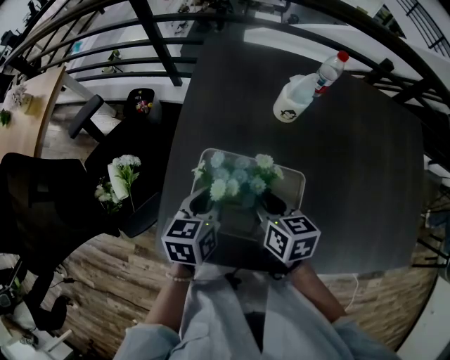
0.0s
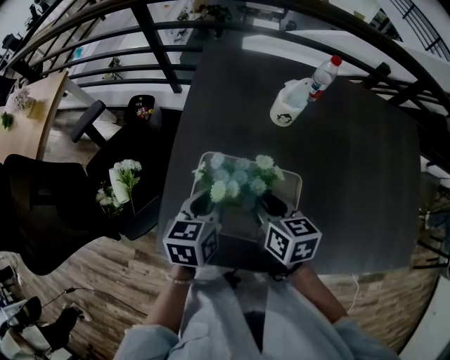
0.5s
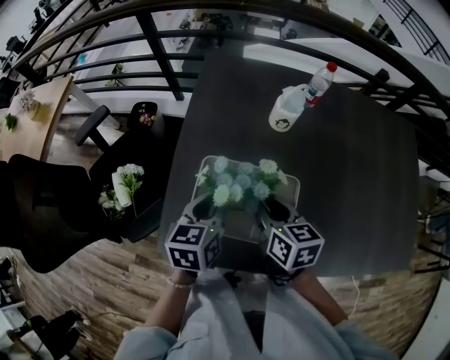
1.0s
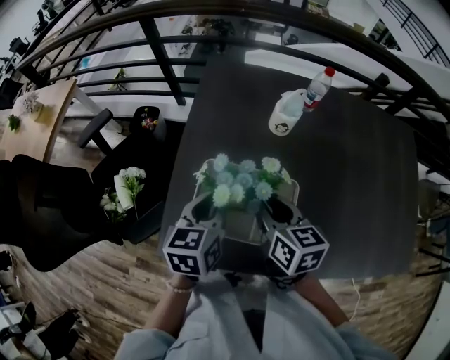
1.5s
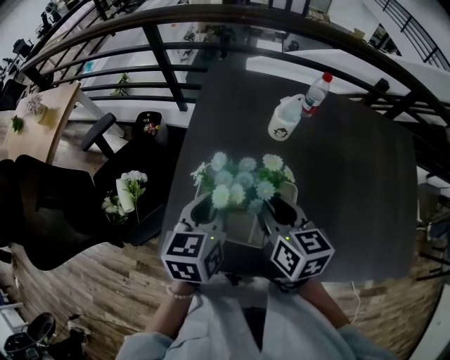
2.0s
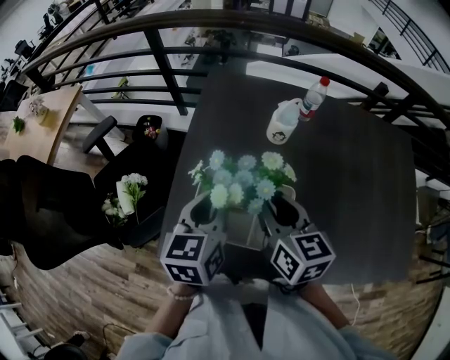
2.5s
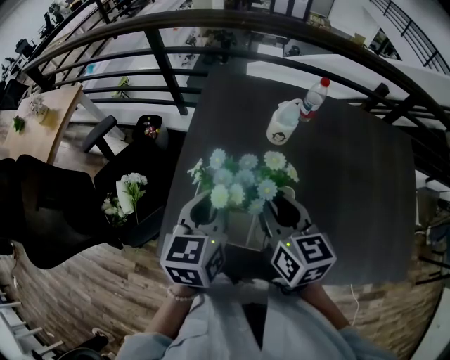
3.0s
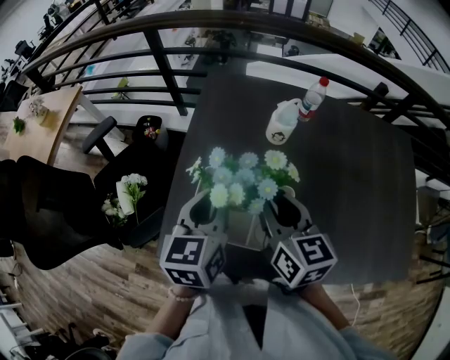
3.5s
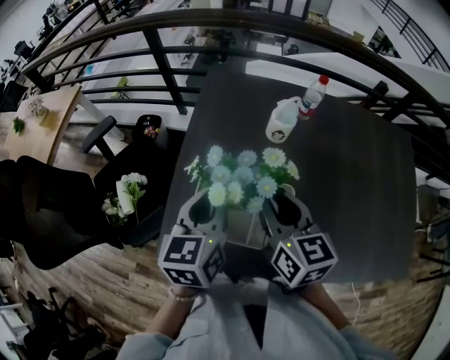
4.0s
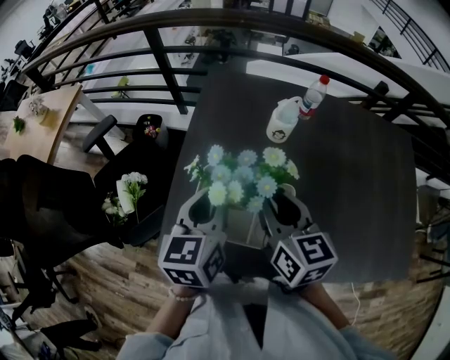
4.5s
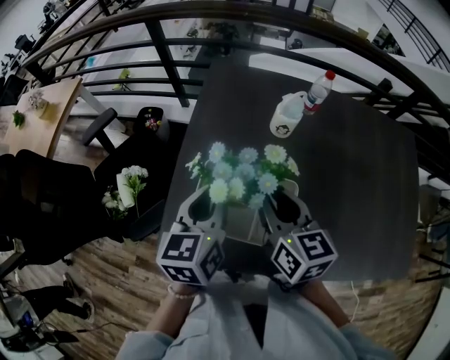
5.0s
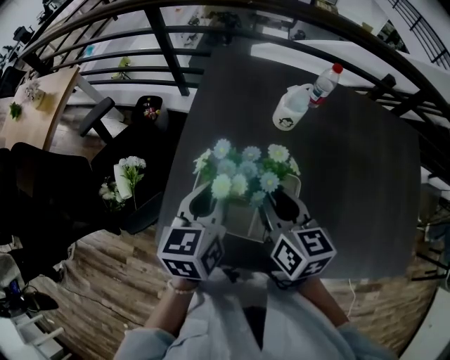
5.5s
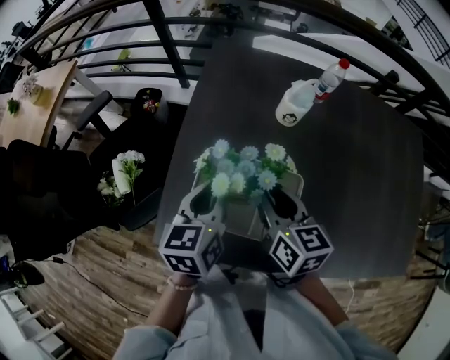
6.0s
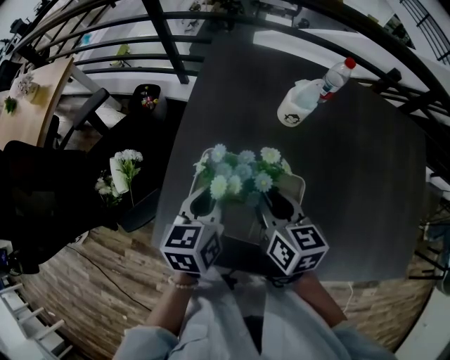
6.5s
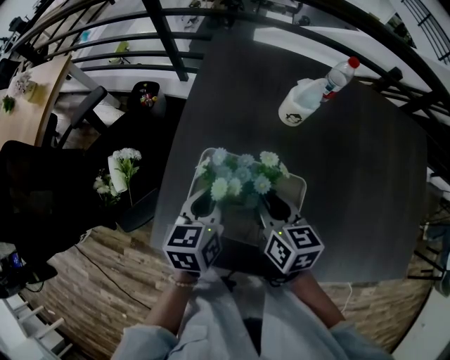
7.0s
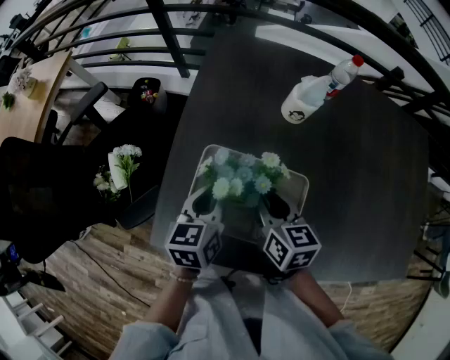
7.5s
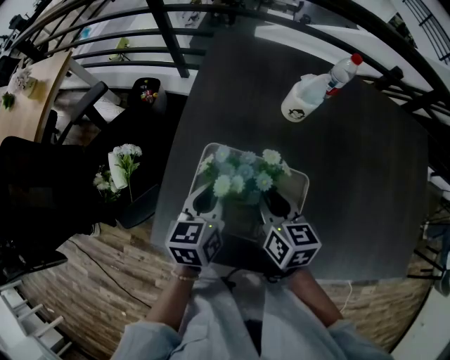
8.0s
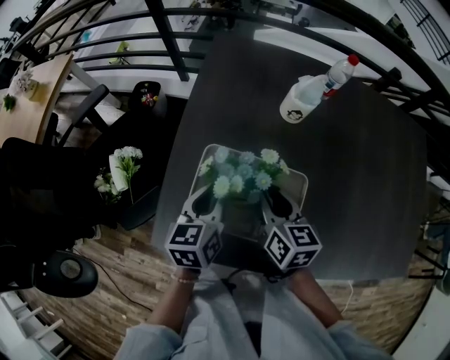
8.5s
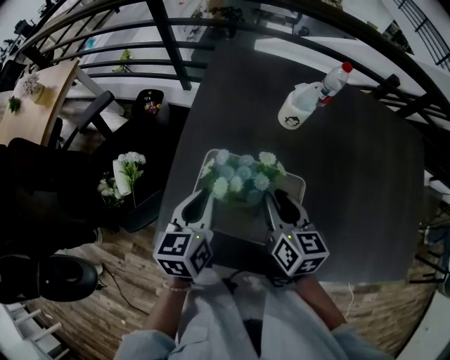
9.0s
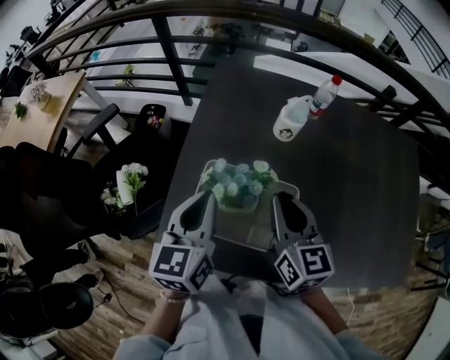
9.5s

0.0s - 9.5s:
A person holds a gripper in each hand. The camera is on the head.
0.0s - 2.0s: Both grippers move upward, some 10 cm.
2.0s - 5.5s: The grippers move only a little.
5.5s - 7.5s: Both grippers move downward, roughly 10 cm.
7.5s - 9.5s: Both grippers travel together upward, about 10 cm. The right gripper turns by some 20 degrees.

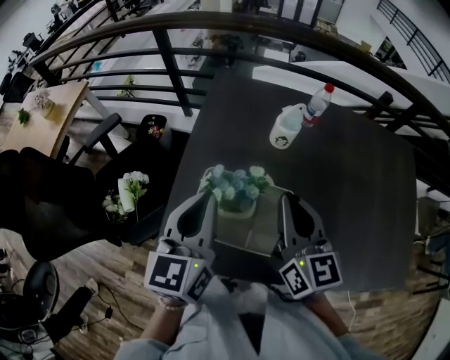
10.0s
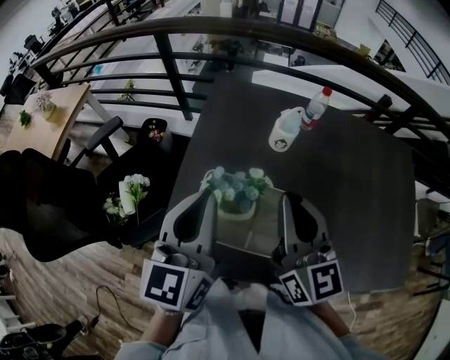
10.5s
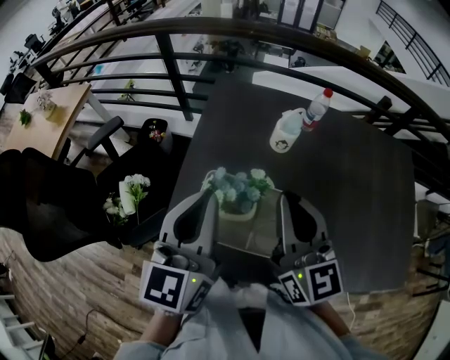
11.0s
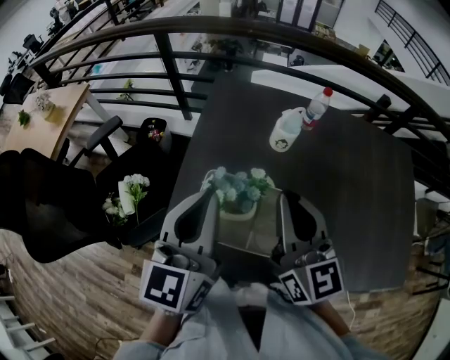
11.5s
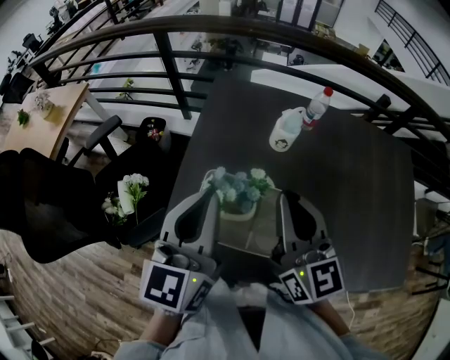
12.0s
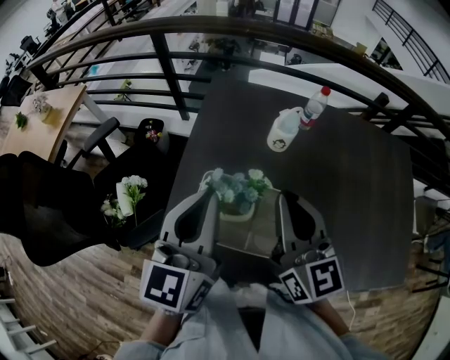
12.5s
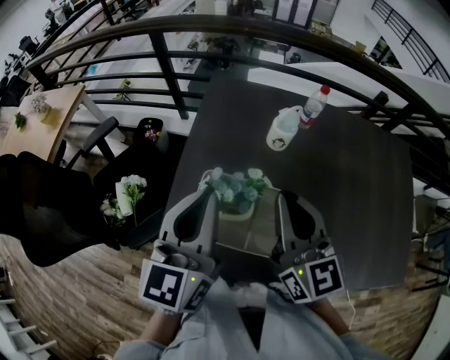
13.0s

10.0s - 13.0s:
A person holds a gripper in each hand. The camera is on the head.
10.0s - 11.5s: Both grippers move upward, roughly 5 cm.
11.5s - 13.0s: Neither gripper changes place.

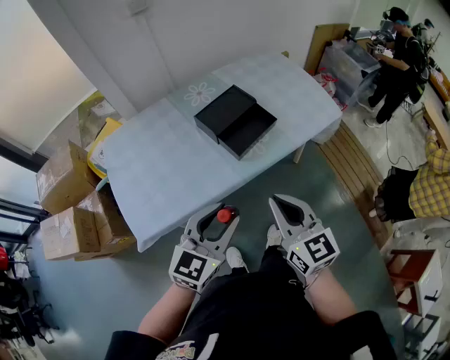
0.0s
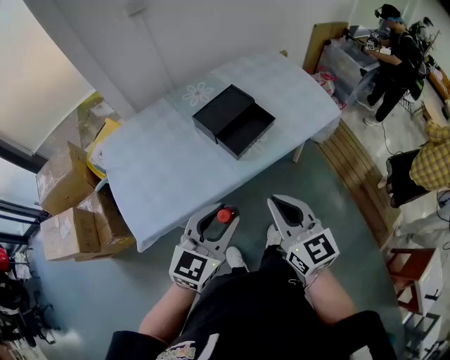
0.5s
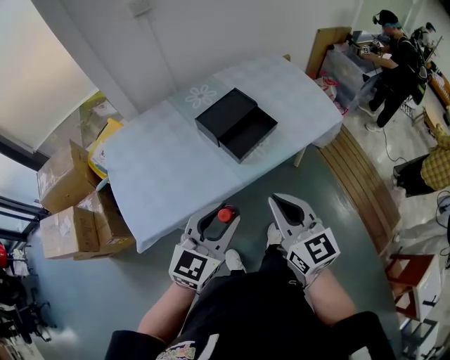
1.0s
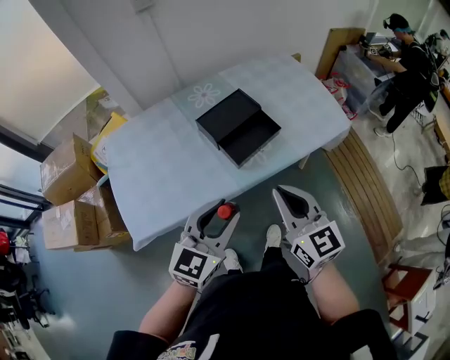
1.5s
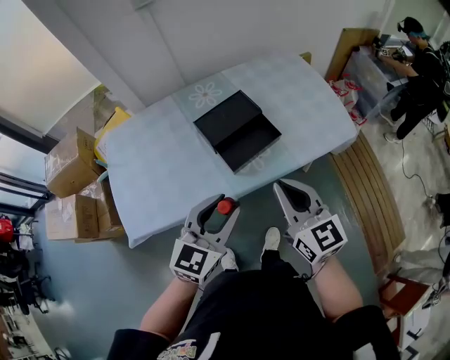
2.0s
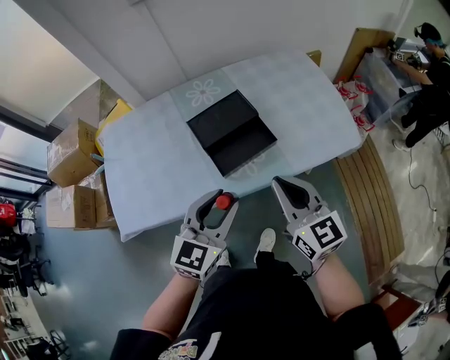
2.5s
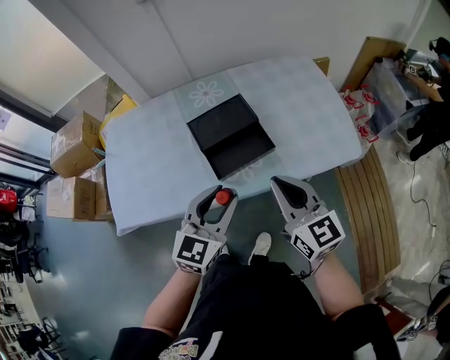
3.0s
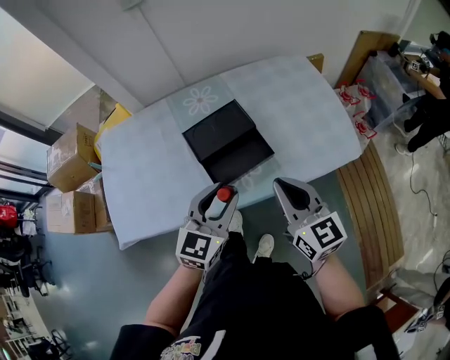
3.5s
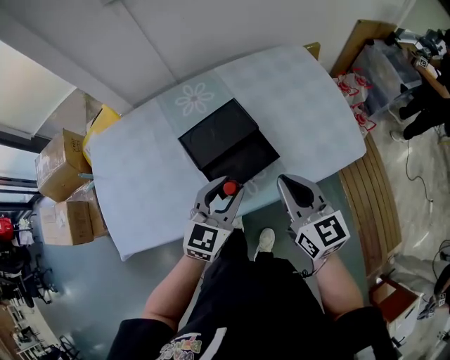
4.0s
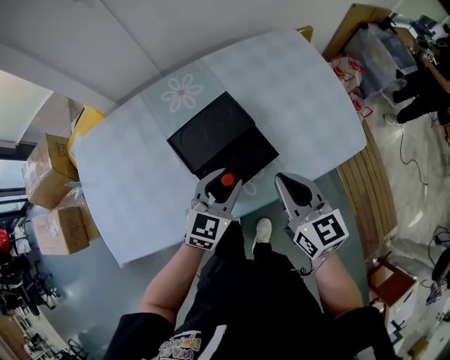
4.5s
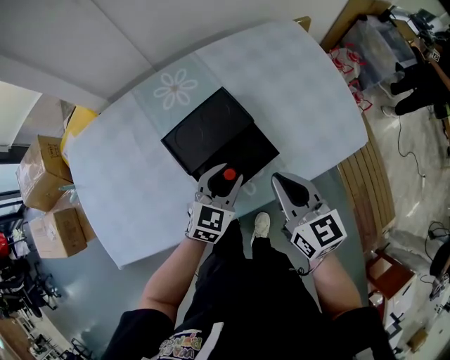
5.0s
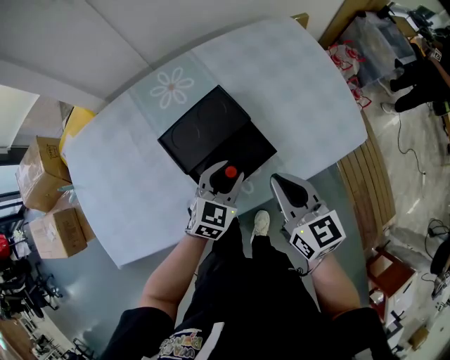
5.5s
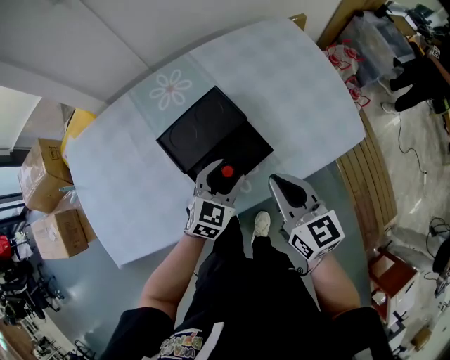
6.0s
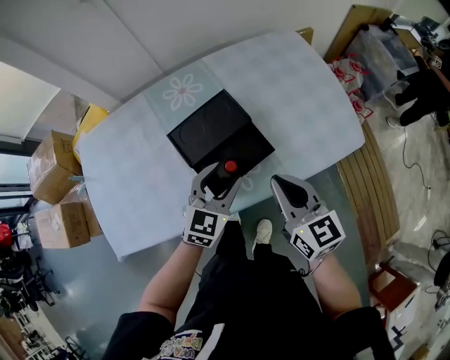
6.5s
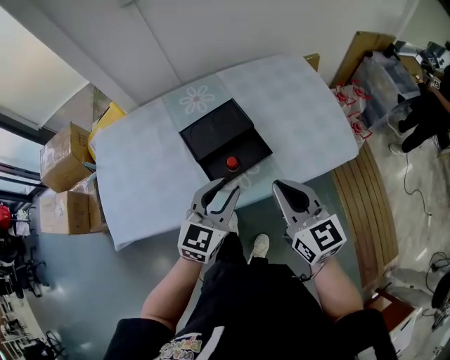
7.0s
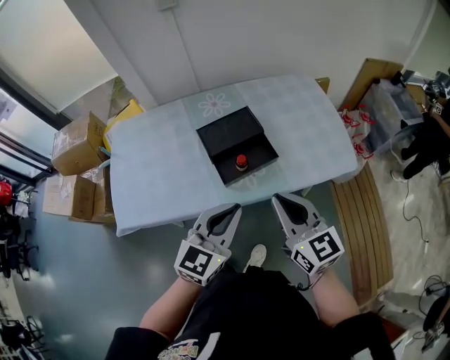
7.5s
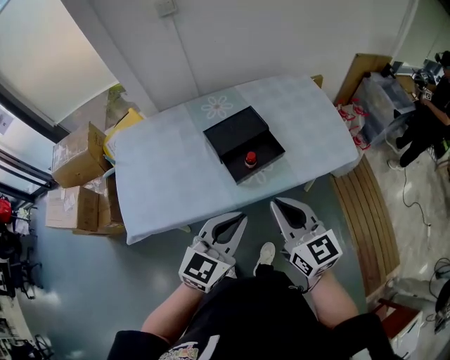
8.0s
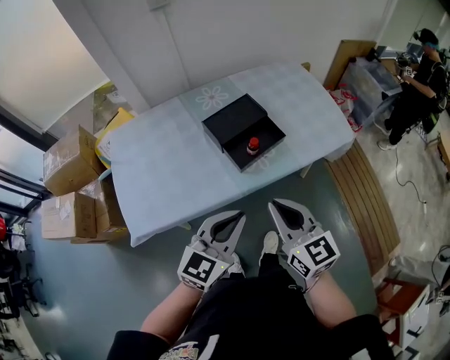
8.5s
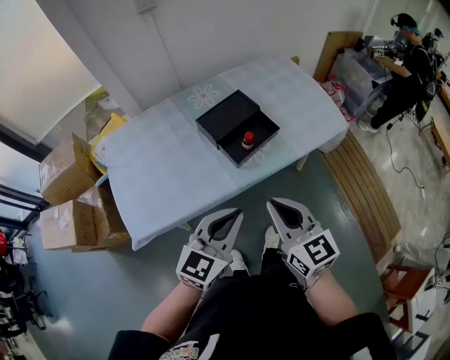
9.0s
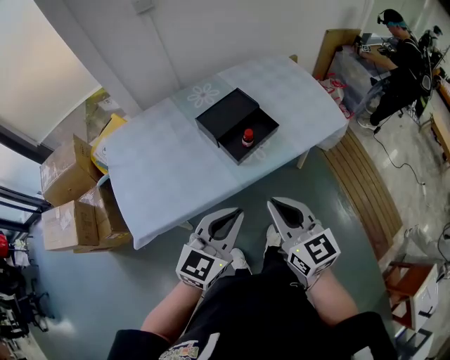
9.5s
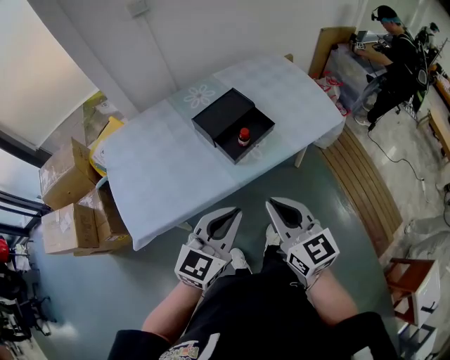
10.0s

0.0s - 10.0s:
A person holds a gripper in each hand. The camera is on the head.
0.0s - 2.0s: Both grippers move forward and to the right, roughly 15 cm.
2.0s - 4.0s: The right gripper is displaced forward by some 15 cm. Meanwhile the left gripper is displaced forward and downward by approximately 20 cm.
4.0s - 6.0s: The left gripper is displaced downward and forward by roughly 15 cm. Meanwhile the right gripper goes some 5 cm downward.
6.0s - 8.0s: The right gripper moves backward and upward, approximately 20 cm; the left gripper is displaced backward and upward by about 35 cm, turns by approximately 20 degrees, and closes up.
8.0s - 10.0s: Both grippers travel together backward, roughly 10 cm.

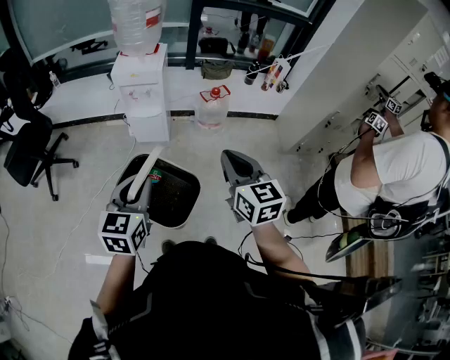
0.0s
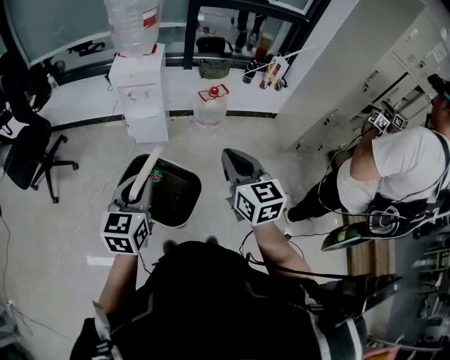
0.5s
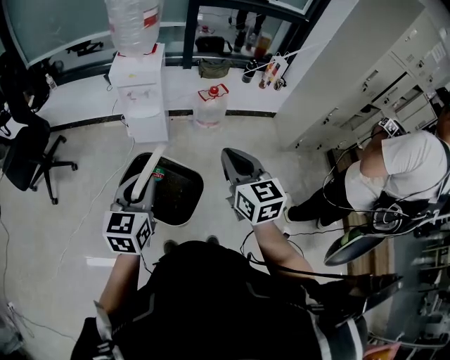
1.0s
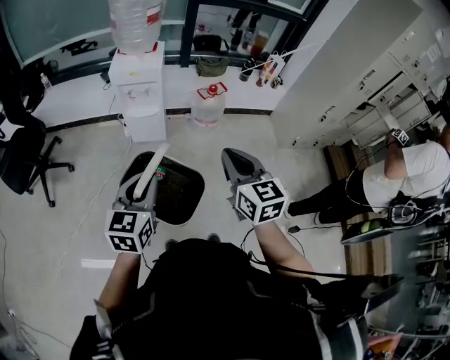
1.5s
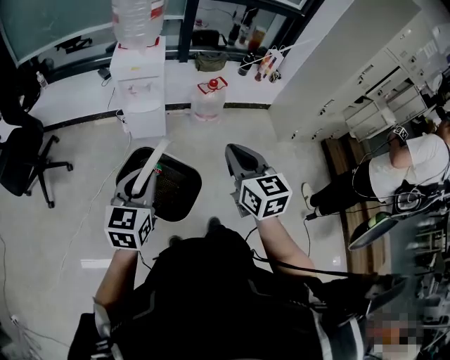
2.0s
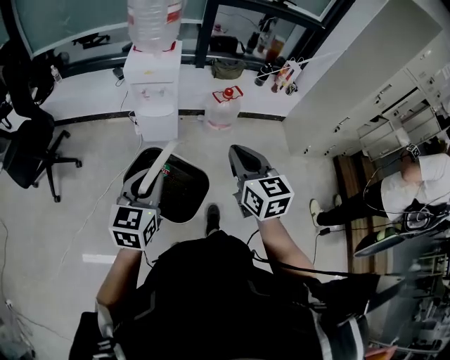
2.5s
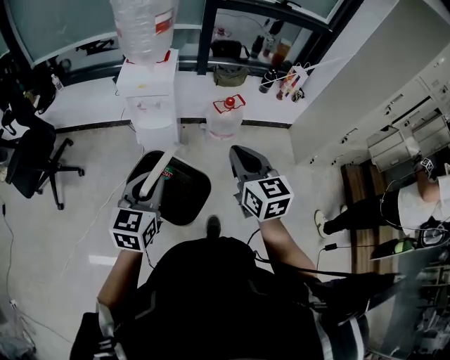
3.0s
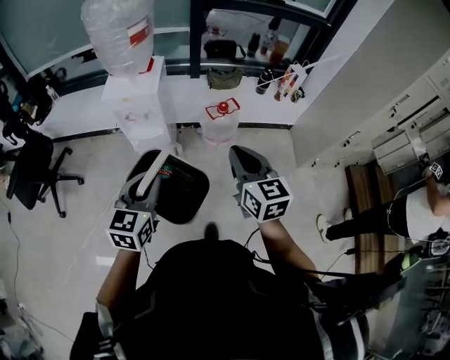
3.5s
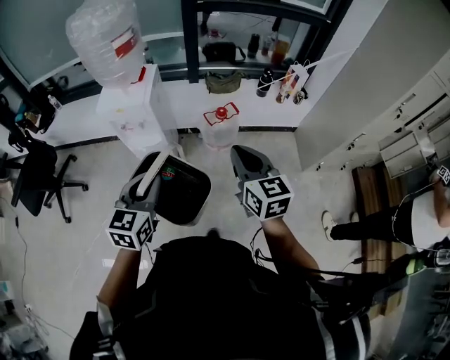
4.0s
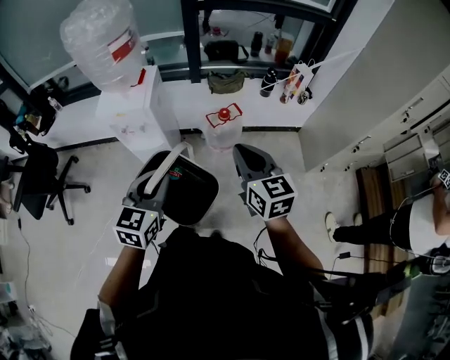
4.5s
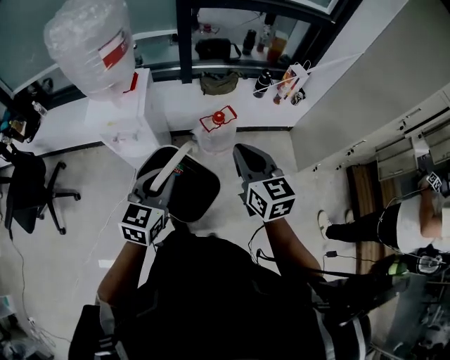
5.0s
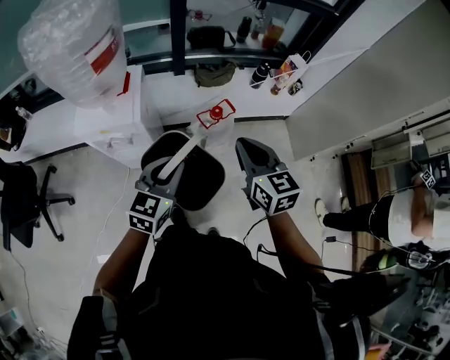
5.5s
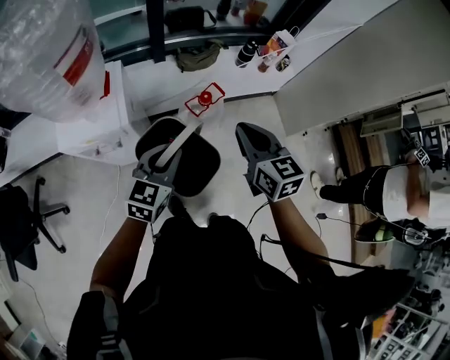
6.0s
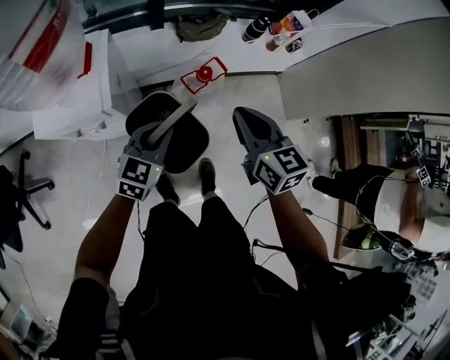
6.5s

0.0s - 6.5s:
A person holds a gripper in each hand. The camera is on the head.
0.0s - 2.0s: The grippers both shift to the left by roughly 5 cm.
2.0s - 4.5s: The two grippers go approximately 35 cm forward and to the right.
4.5s - 6.5s: Both grippers move forward and downward, about 30 cm. The left gripper turns by some 20 degrees.
